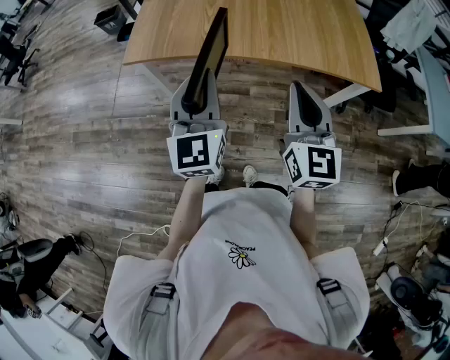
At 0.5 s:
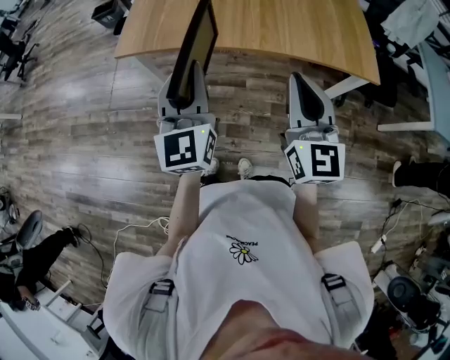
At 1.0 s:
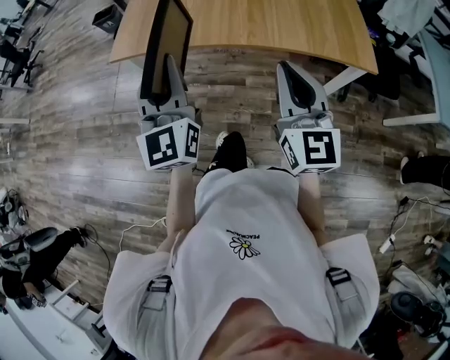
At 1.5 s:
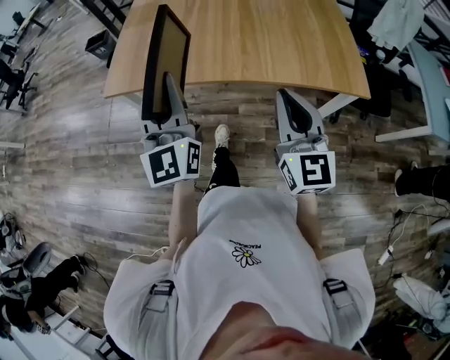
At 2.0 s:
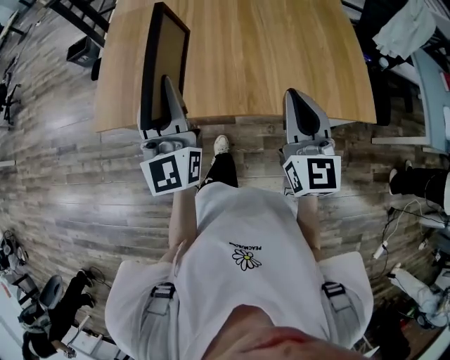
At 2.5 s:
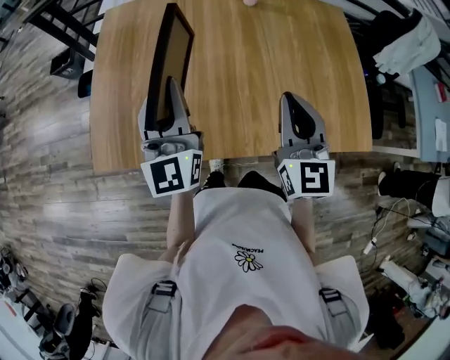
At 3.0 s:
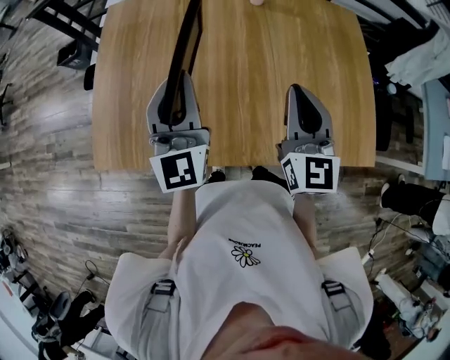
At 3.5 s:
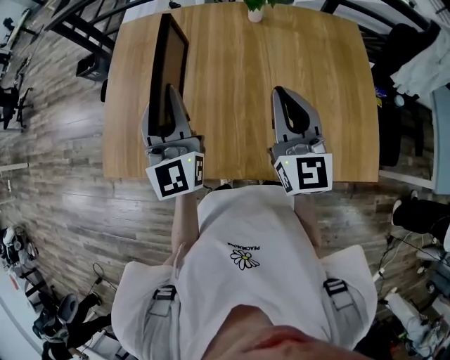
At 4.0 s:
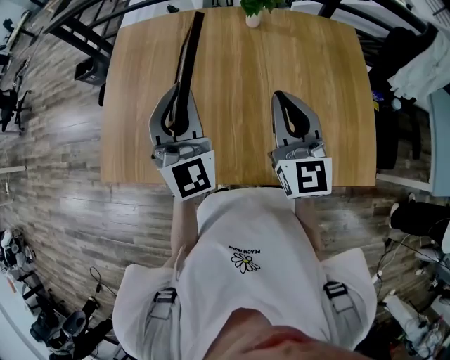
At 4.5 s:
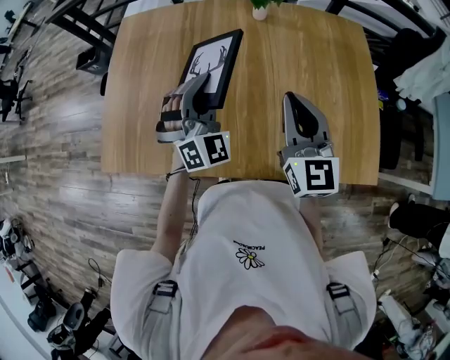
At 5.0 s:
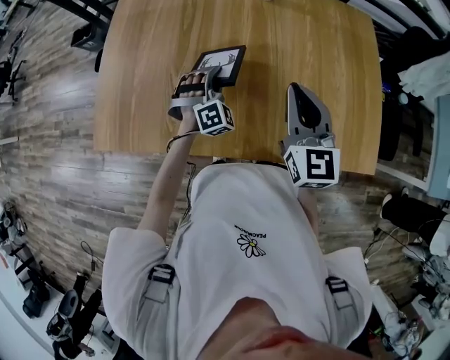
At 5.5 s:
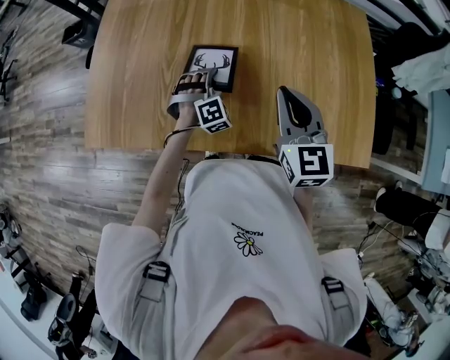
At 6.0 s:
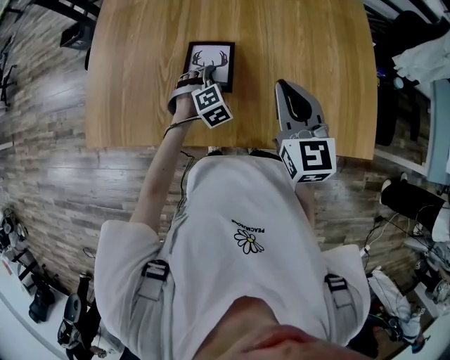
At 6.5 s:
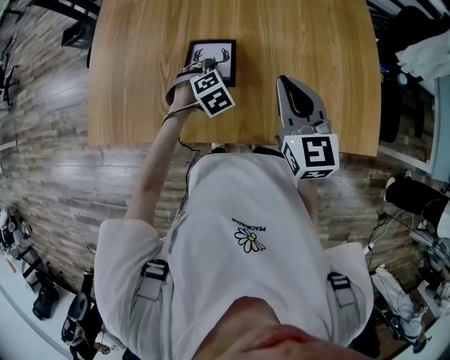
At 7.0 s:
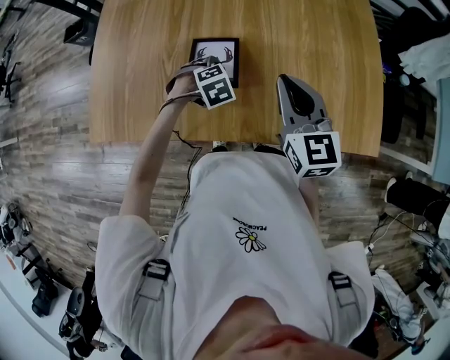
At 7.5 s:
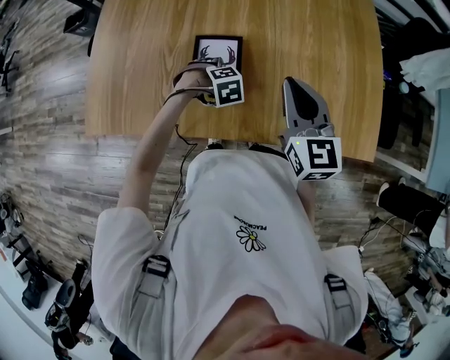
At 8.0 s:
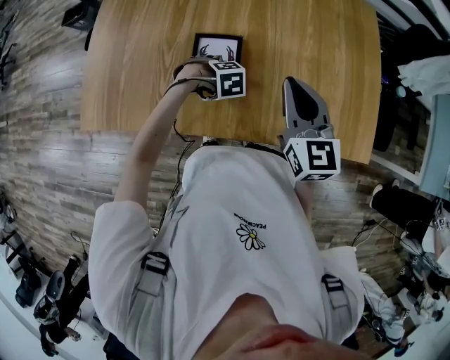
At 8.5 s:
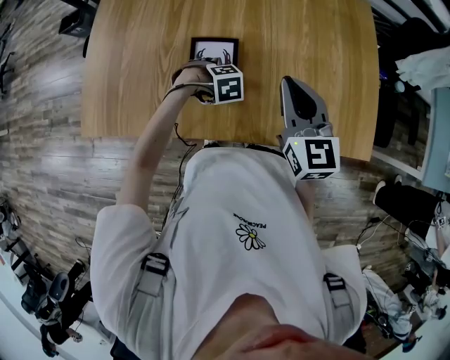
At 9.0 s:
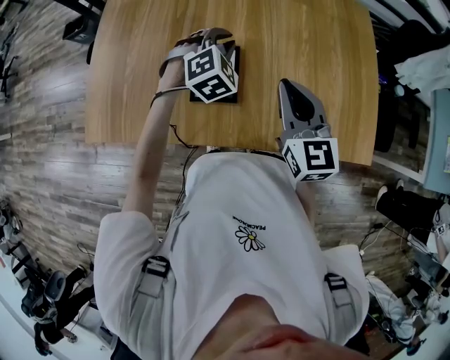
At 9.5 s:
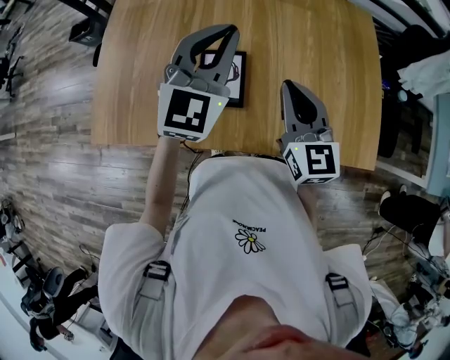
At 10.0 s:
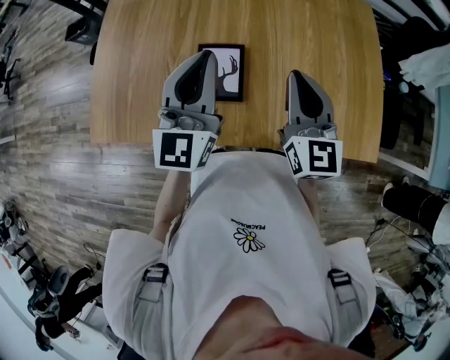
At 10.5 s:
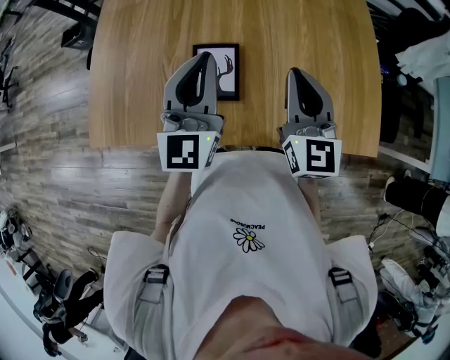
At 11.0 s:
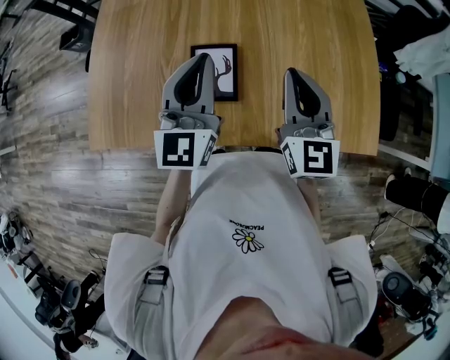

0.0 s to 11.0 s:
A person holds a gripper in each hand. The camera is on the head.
0.0 to 2.0 s: The left gripper is displaced forward by approximately 20 cm, while the right gripper moves forward and to the right, about 20 cm.
2.0 to 3.5 s: Both grippers travel together forward, approximately 20 cm.
3.5 to 5.5 s: The left gripper shifts approximately 30 cm downward, and angles its fingers downward, by roughly 50 degrees. The right gripper shifts about 10 cm downward.
5.5 to 7.5 s: The left gripper ends up about 10 cm from where it was, tilts its fingers approximately 40 degrees downward, and opens up.
7.5 to 9.0 s: The left gripper is displaced upward by some 20 cm, tilts its fingers about 40 degrees upward, and closes its fingers.
9.0 to 11.0 s: The left gripper is displaced upward and backward by roughly 15 cm, and angles its fingers upward, by about 50 degrees.

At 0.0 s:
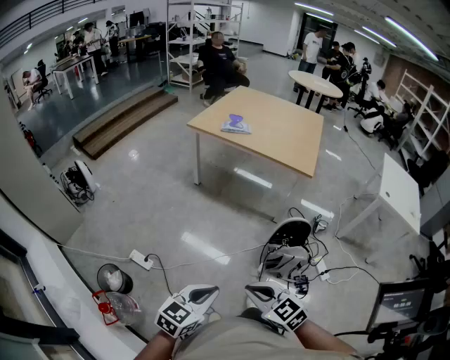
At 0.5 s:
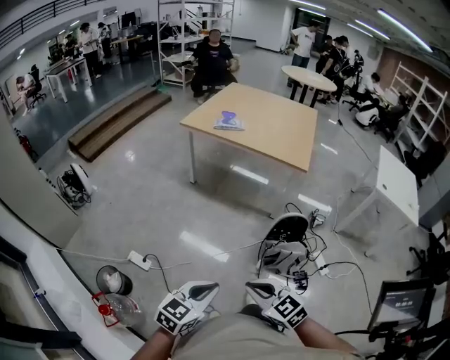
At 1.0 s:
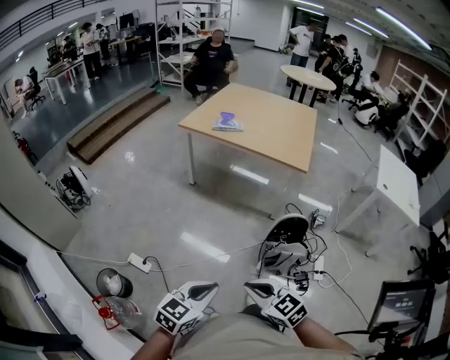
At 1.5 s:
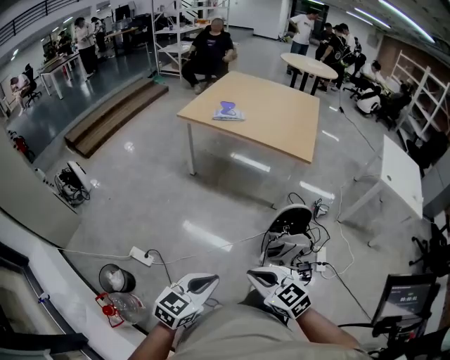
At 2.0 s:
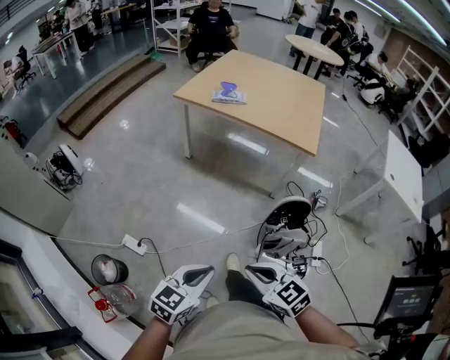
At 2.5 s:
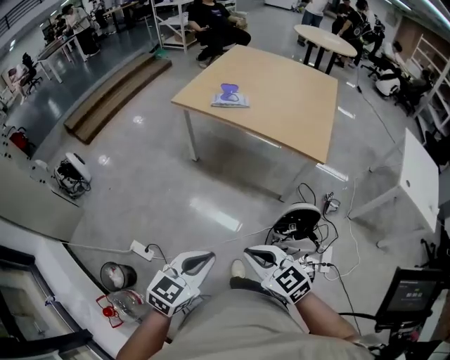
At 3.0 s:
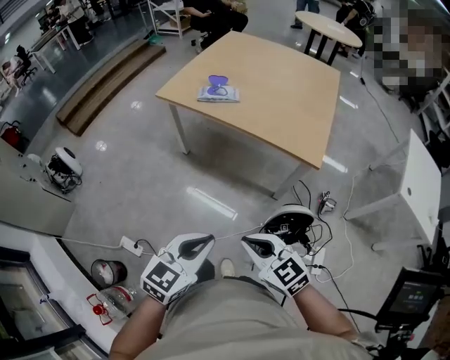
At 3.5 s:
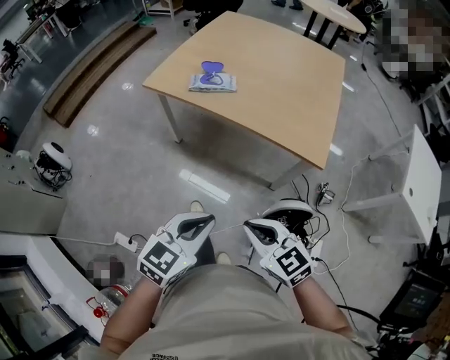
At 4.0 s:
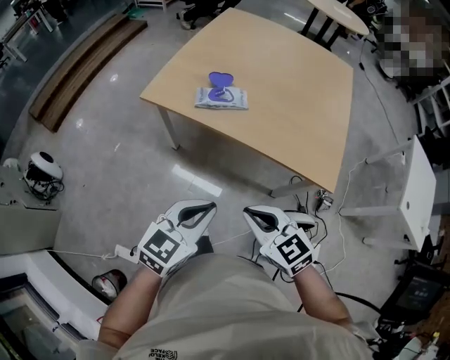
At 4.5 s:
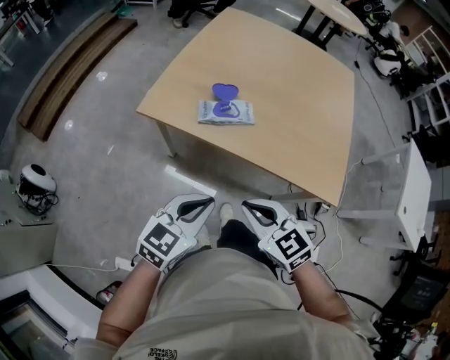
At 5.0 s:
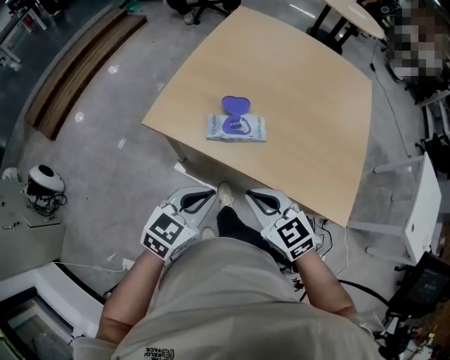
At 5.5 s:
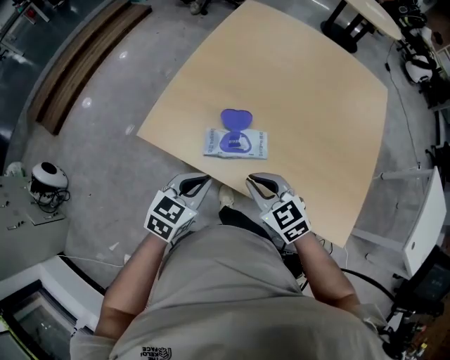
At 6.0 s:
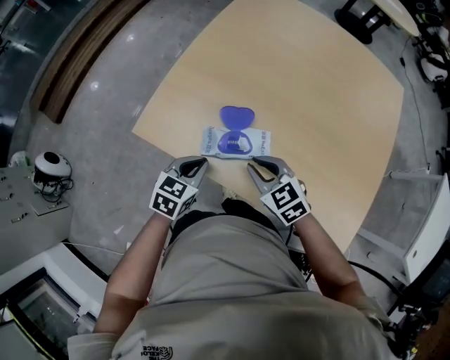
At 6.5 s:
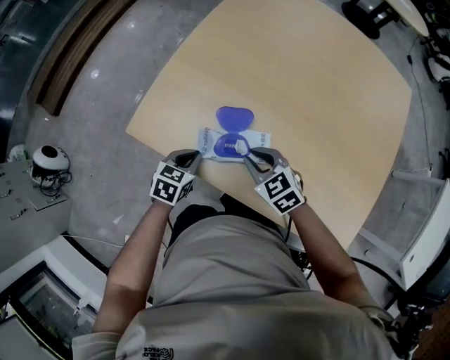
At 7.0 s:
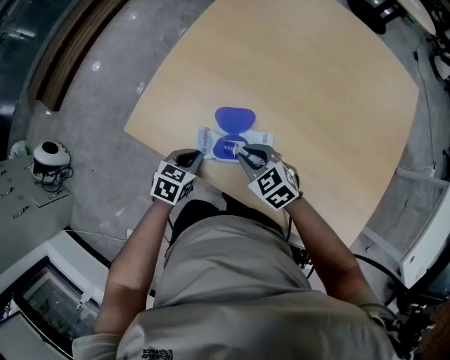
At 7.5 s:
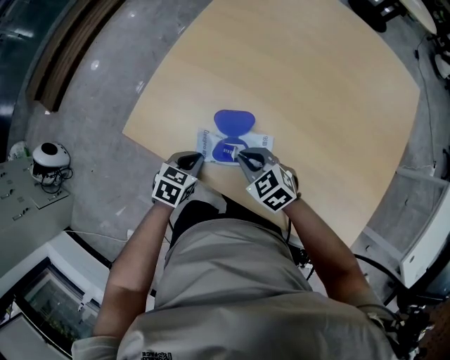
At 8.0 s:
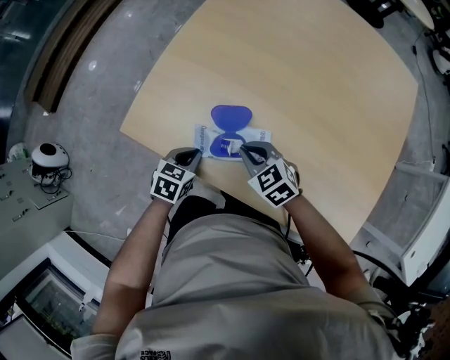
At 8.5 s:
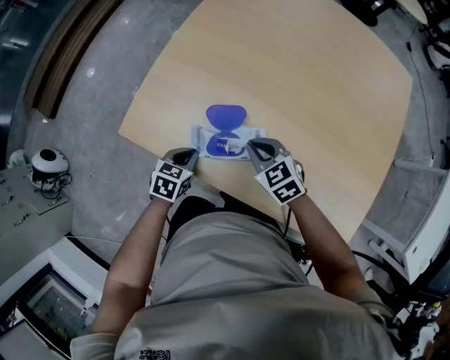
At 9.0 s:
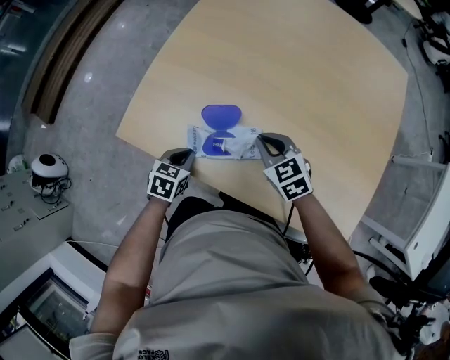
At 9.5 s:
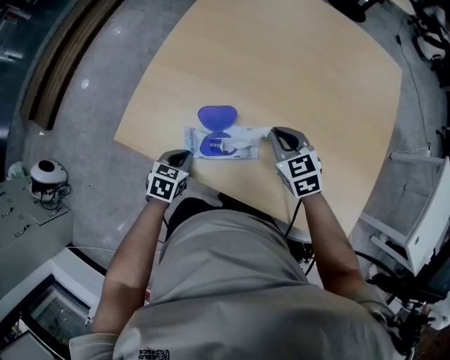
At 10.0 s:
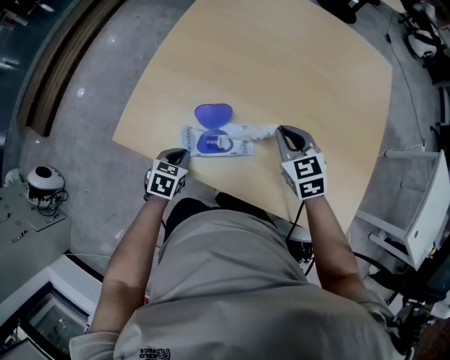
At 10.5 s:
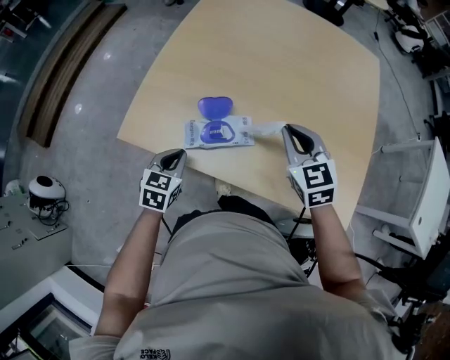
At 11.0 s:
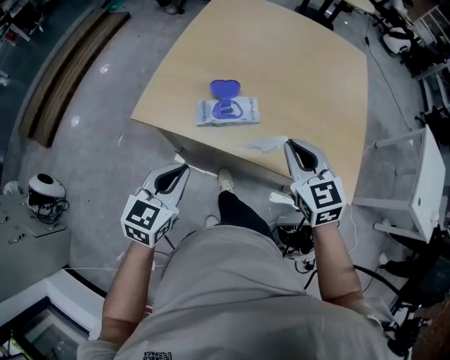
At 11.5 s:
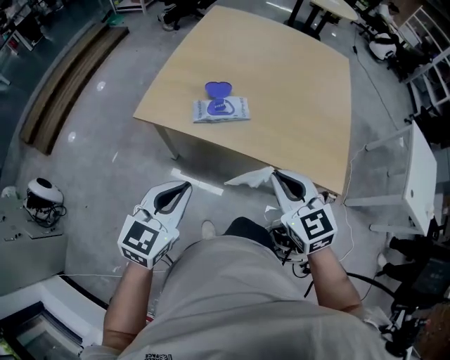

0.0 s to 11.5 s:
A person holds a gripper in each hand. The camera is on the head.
0.0 to 2.0 s: Both grippers move forward, roughly 15 cm.
2.0 to 4.0 s: Both grippers are carried forward, about 60 cm.
4.0 to 6.0 s: The two grippers travel together, forward, roughly 40 cm. The left gripper goes about 20 cm downward, and changes its angle by roughly 20 degrees.
6.0 to 7.5 s: The left gripper shifts some 10 cm downward, while the right gripper travels downward and forward by roughly 10 cm.
7.5 to 9.5 s: The right gripper is displaced to the right and upward by approximately 15 cm, and changes its angle by roughly 30 degrees.
9.5 to 11.5 s: The two grippers go about 40 cm backward and upward. The left gripper angles its fingers upward, by about 40 degrees.

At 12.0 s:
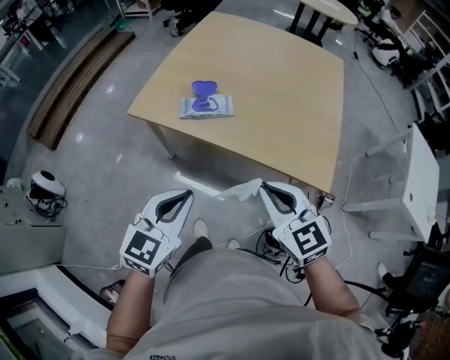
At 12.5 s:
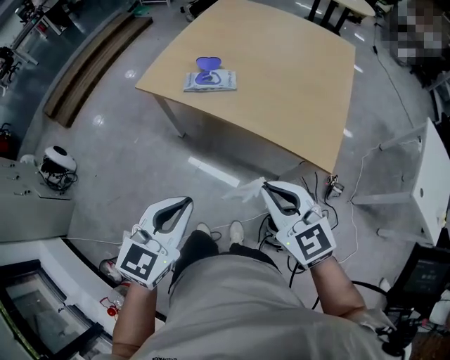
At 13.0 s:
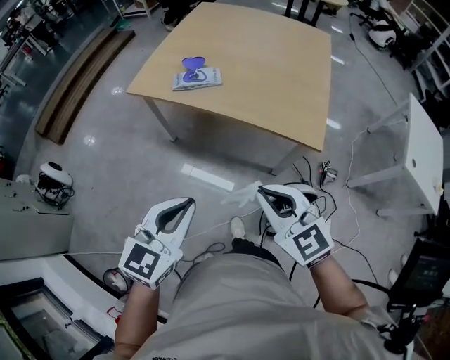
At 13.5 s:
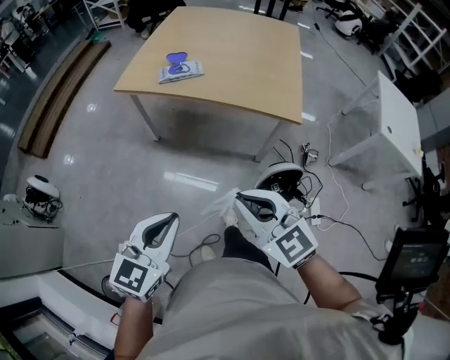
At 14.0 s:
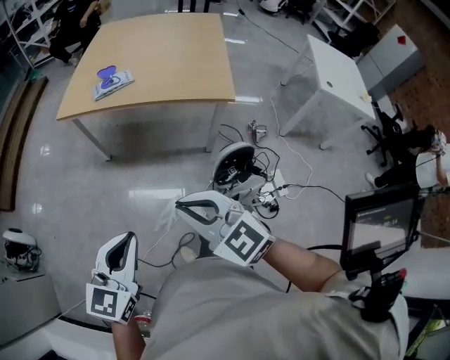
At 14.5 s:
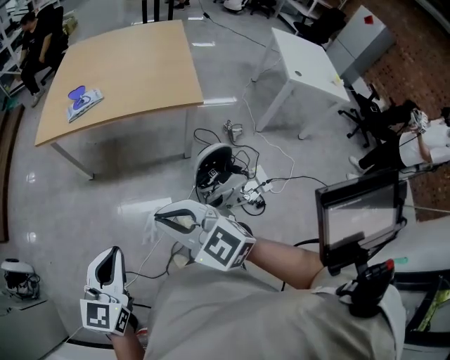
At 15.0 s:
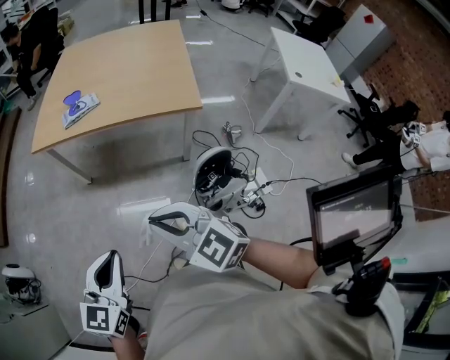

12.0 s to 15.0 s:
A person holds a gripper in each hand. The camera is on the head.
12.0 to 13.5 s: The two grippers go about 35 cm backward.
13.5 to 15.0 s: The grippers both shift backward by roughly 5 cm.

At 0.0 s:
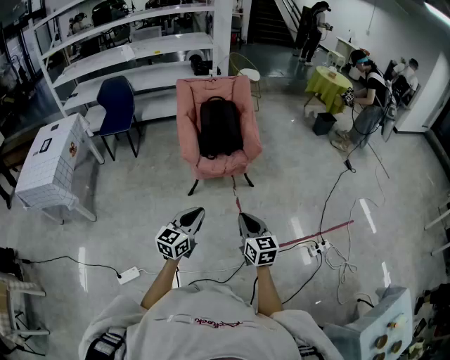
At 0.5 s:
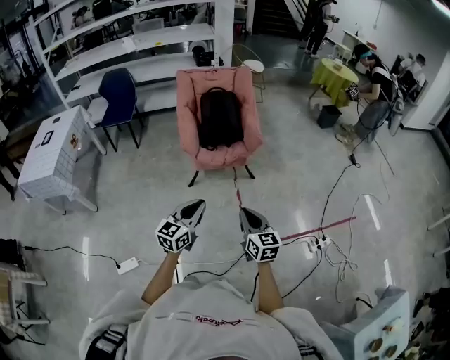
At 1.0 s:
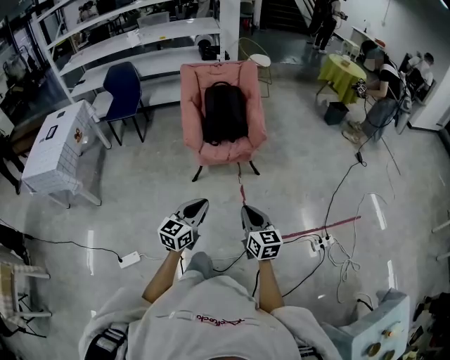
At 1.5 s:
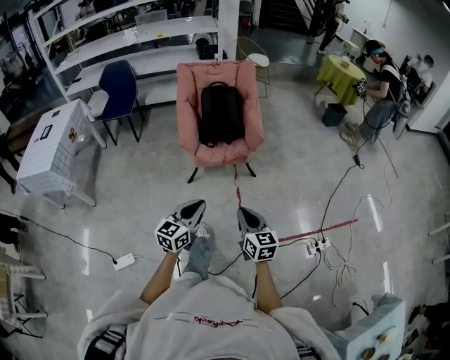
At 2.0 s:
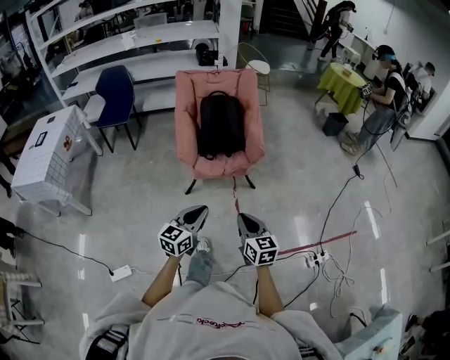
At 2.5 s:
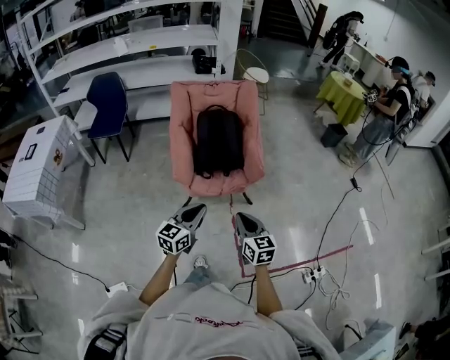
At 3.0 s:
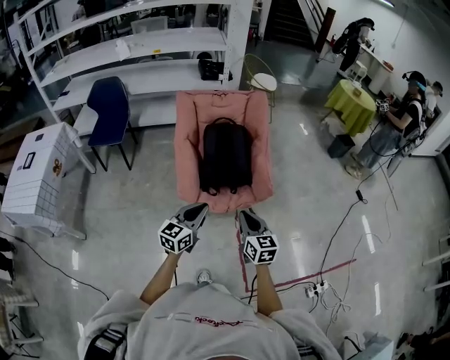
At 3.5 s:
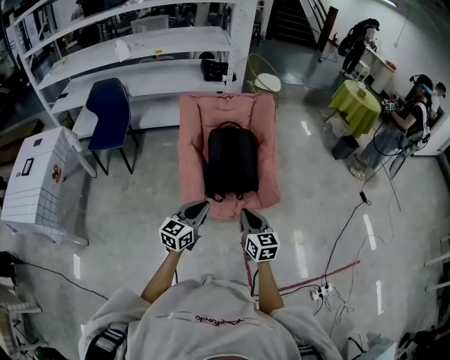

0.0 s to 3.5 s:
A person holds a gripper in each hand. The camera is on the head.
0.0 to 2.0 s: The left gripper moves forward and to the right, approximately 15 cm. The right gripper moves forward, about 15 cm.
2.0 to 3.5 s: The grippers both shift forward by approximately 35 cm.
